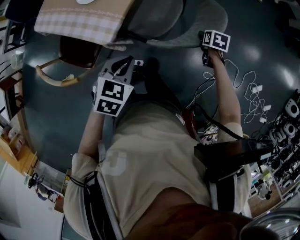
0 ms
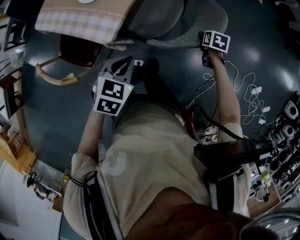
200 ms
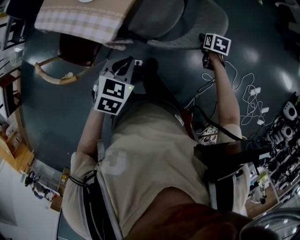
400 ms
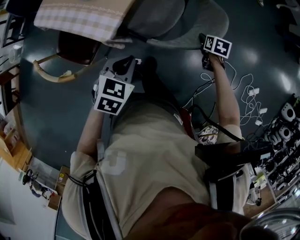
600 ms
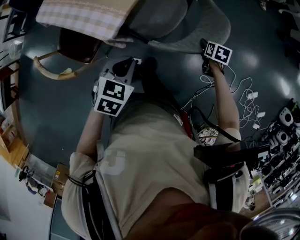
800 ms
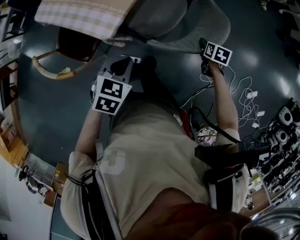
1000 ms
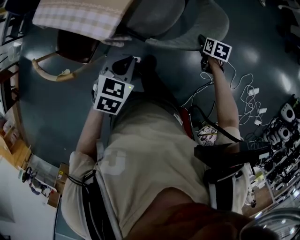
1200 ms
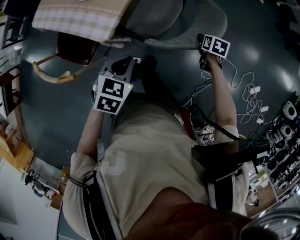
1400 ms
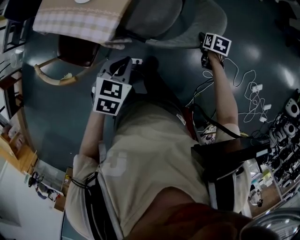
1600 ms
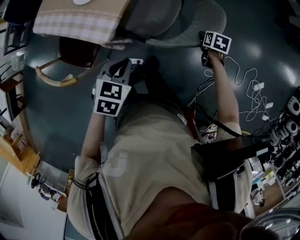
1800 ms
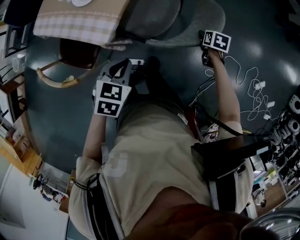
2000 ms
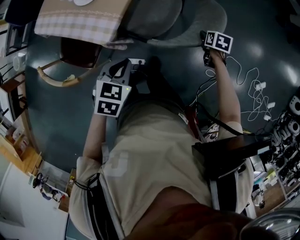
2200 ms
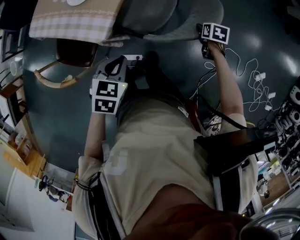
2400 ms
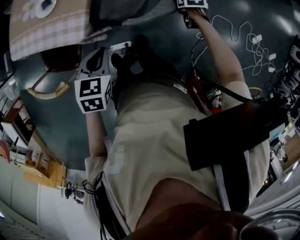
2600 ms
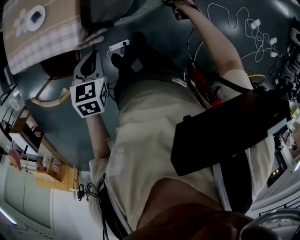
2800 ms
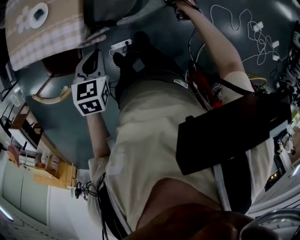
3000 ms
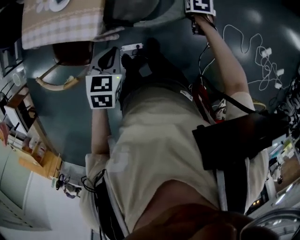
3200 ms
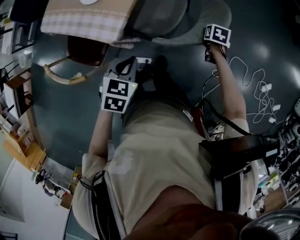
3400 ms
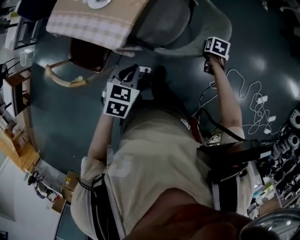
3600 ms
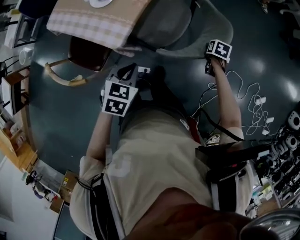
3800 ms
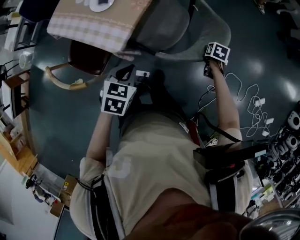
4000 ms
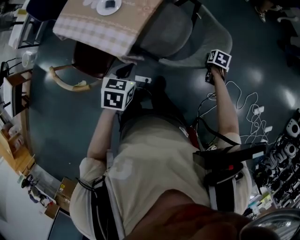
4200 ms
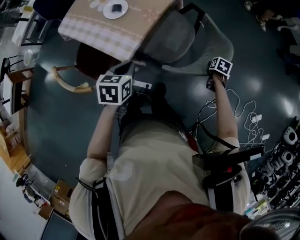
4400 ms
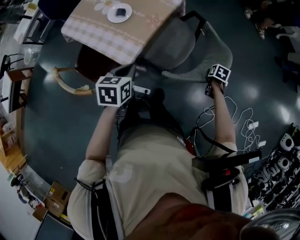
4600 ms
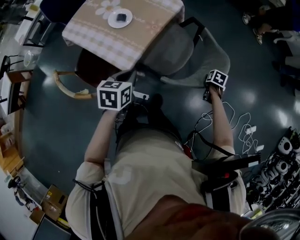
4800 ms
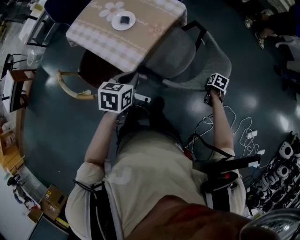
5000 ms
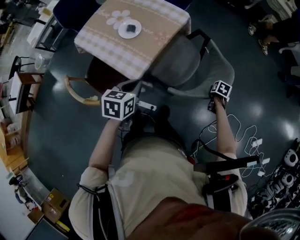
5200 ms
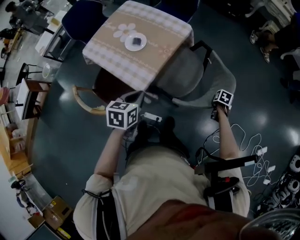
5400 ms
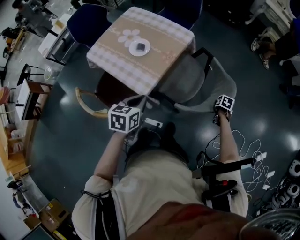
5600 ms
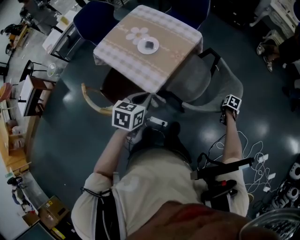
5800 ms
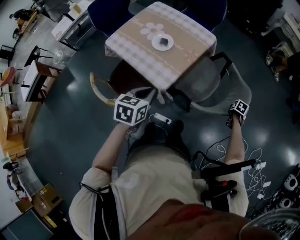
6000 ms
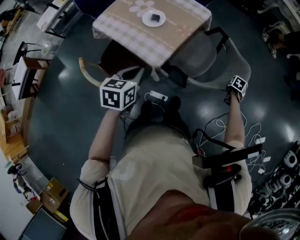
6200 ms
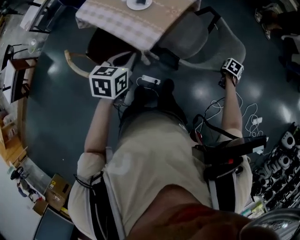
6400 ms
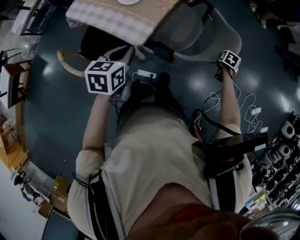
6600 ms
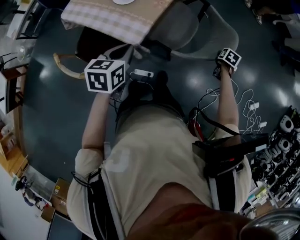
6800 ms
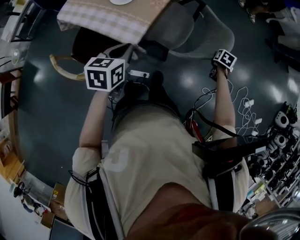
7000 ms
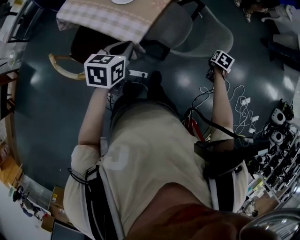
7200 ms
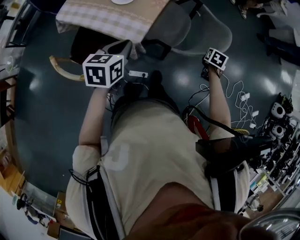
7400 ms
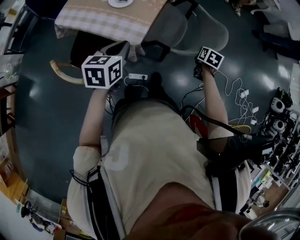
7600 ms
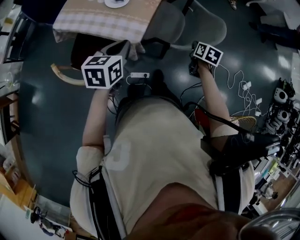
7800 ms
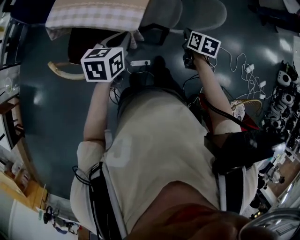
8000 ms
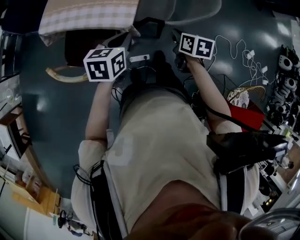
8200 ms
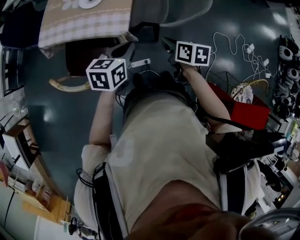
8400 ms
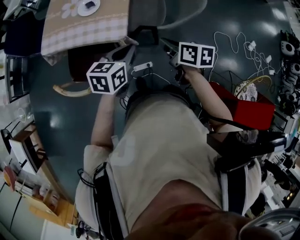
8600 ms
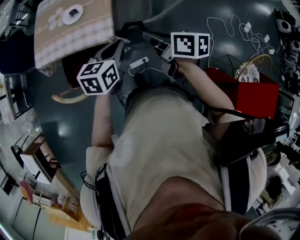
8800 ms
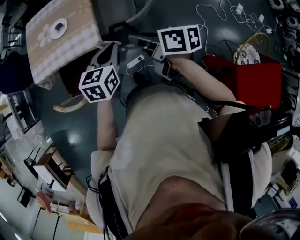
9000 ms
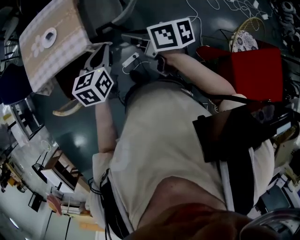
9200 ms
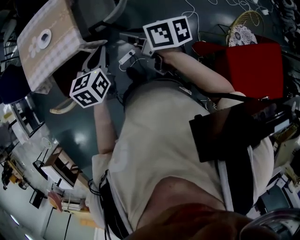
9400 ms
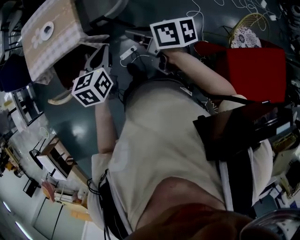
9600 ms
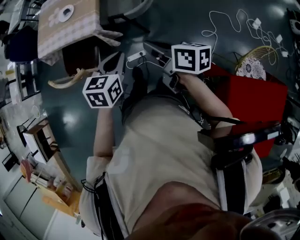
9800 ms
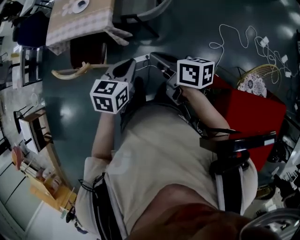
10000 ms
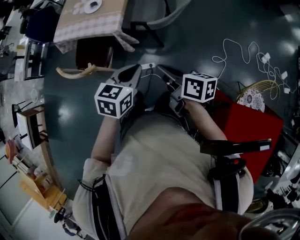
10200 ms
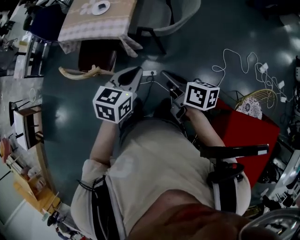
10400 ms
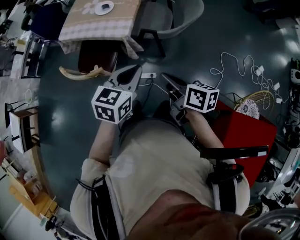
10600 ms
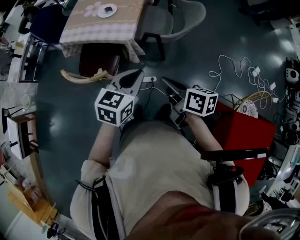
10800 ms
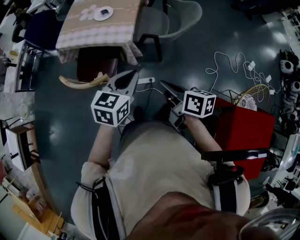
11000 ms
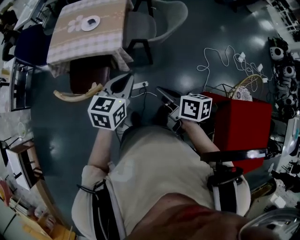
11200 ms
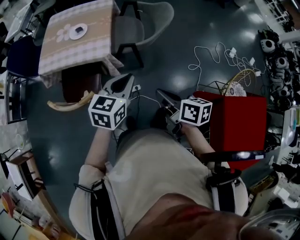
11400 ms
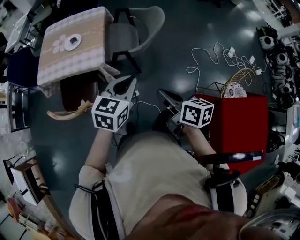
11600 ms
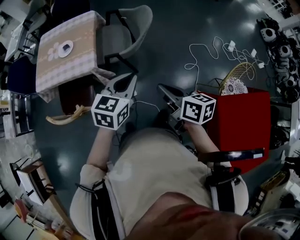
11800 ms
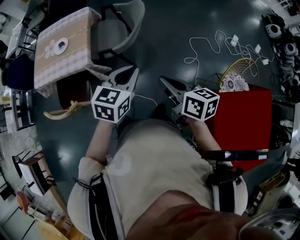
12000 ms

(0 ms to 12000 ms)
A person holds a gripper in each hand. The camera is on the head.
3000 ms - 4400 ms: The left gripper changes place by about 5 cm, and rotates some 30 degrees.
4400 ms - 6000 ms: The left gripper moves about 10 cm.
7600 ms - 9000 ms: The left gripper ends up about 15 cm from where it was, and turns by approximately 30 degrees.
9000 ms - 10400 ms: The left gripper shifts by roughly 15 cm.
10400 ms - 12000 ms: The left gripper ends up about 15 cm from where it was, and rotates approximately 20 degrees.

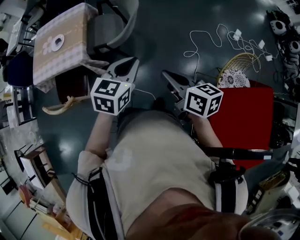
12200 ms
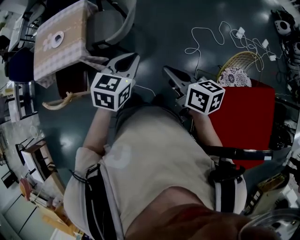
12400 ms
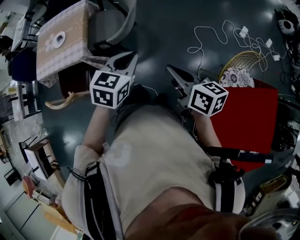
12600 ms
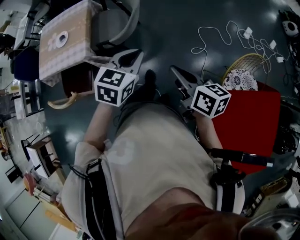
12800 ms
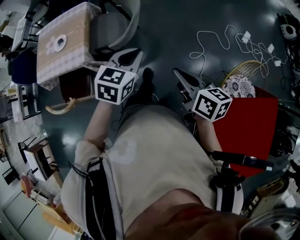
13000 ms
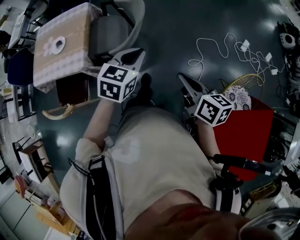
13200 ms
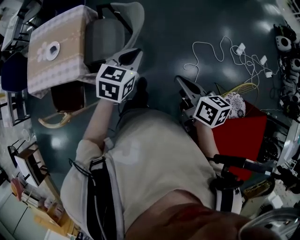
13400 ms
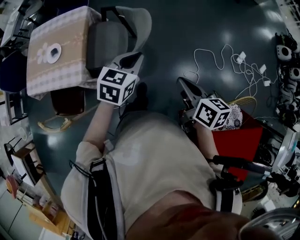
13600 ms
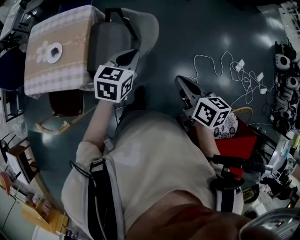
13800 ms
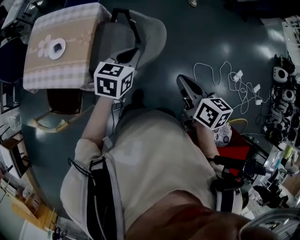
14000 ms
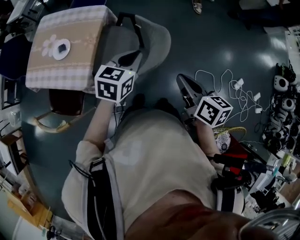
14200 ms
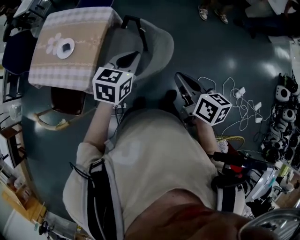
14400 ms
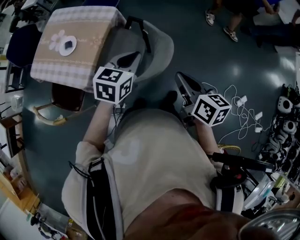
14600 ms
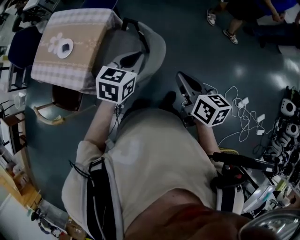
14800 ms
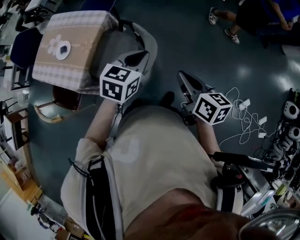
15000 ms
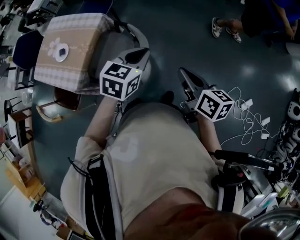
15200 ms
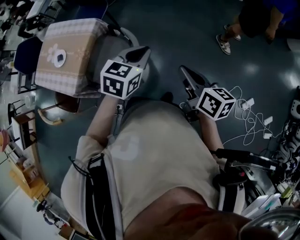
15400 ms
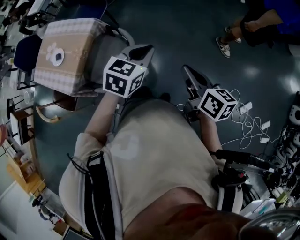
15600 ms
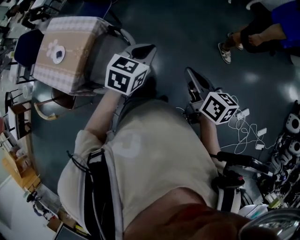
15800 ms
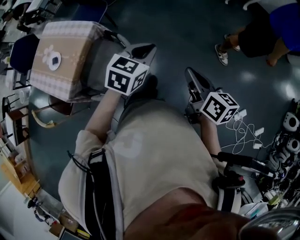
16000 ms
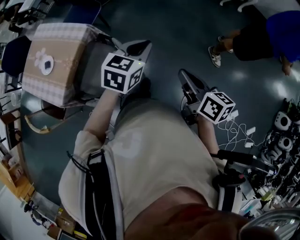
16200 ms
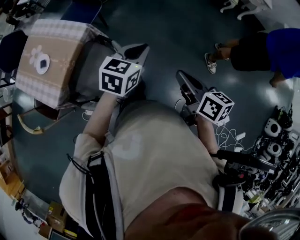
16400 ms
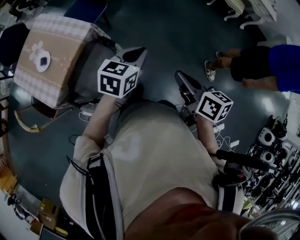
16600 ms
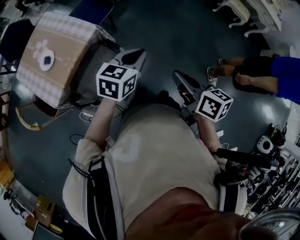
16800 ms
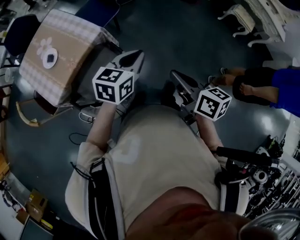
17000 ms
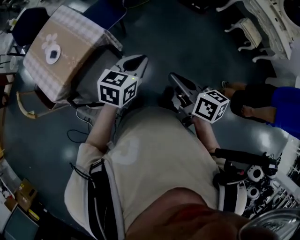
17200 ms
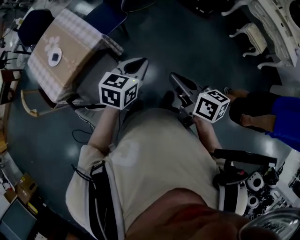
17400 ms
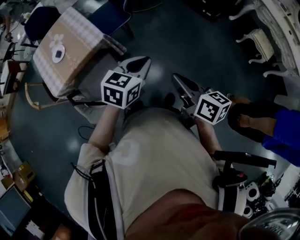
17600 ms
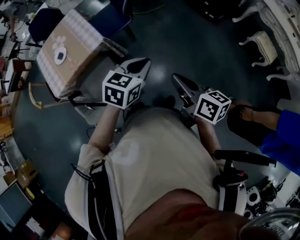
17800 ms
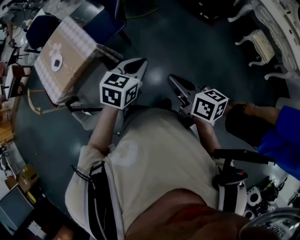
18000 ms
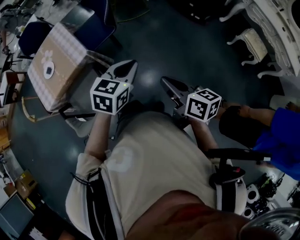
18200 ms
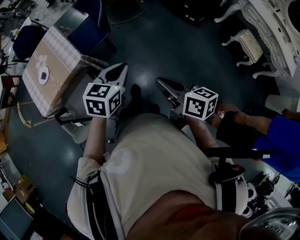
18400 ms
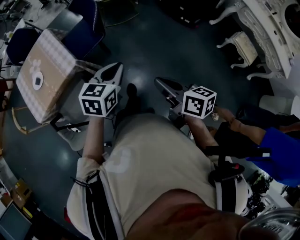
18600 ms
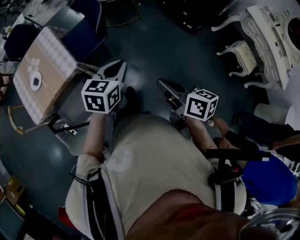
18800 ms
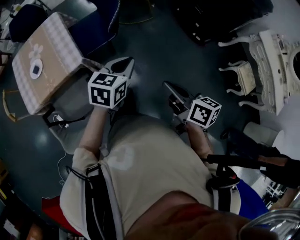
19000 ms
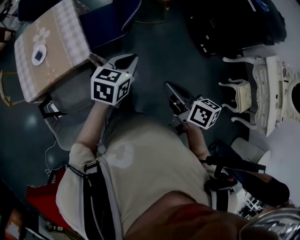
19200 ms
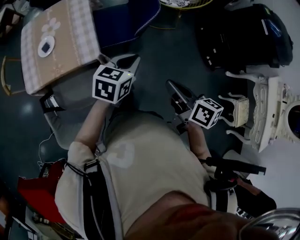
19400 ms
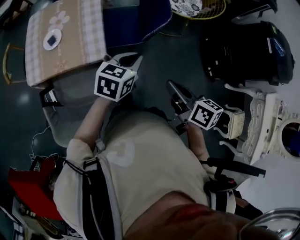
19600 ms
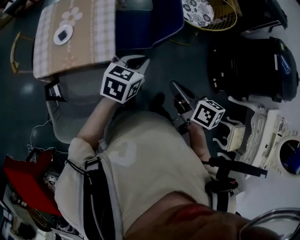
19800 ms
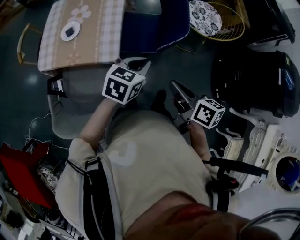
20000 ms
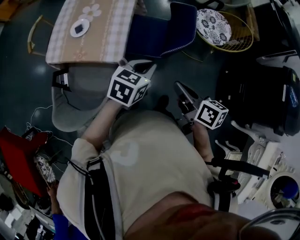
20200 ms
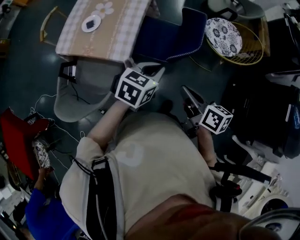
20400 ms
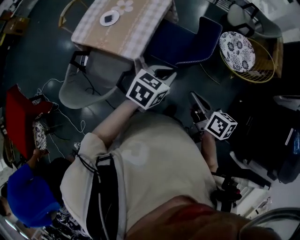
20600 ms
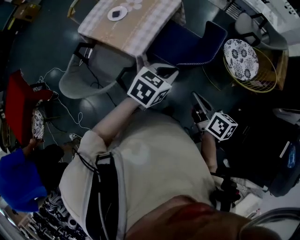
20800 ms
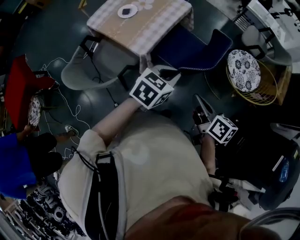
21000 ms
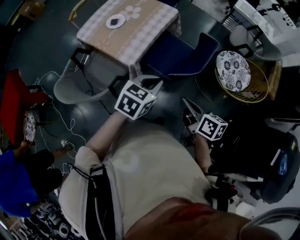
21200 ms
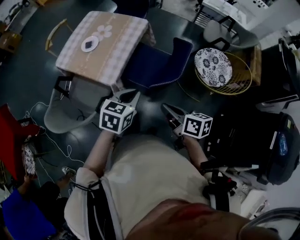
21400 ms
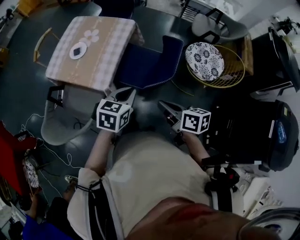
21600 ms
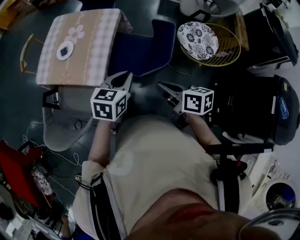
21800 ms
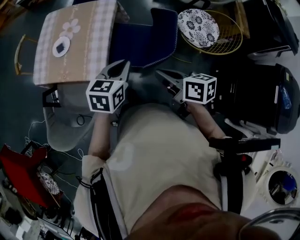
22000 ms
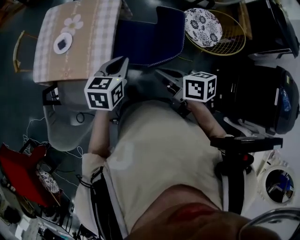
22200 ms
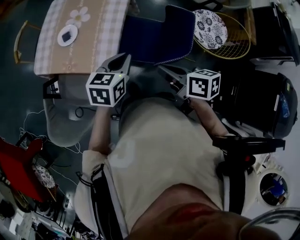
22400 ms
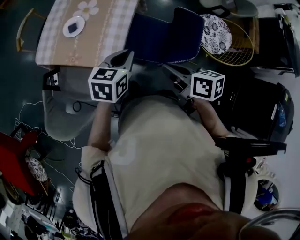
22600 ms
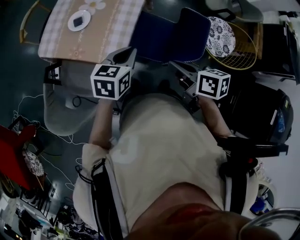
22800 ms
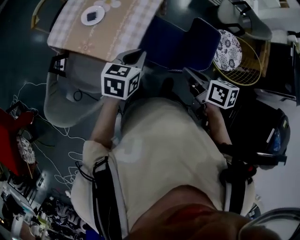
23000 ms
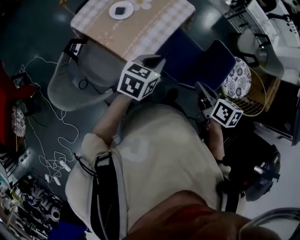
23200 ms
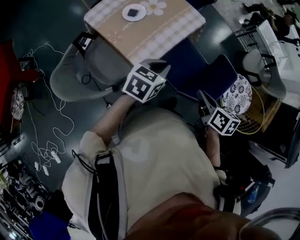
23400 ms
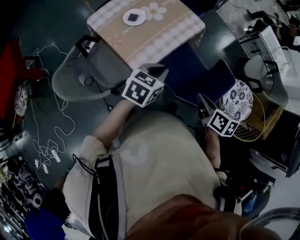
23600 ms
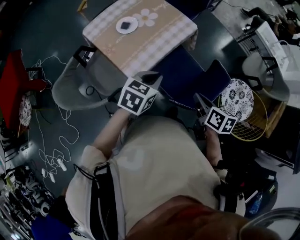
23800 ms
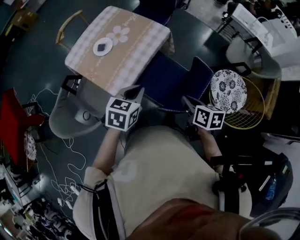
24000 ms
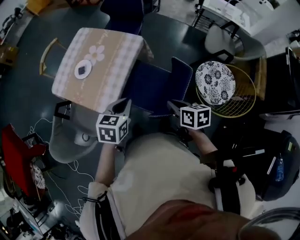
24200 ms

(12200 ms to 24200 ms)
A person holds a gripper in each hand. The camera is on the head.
12200 ms - 13800 ms: The left gripper moves about 35 cm.
13800 ms - 15200 ms: The left gripper ends up about 20 cm from where it was.
15200 ms - 16600 ms: The left gripper moves roughly 25 cm.
16600 ms - 18200 ms: The left gripper shifts by roughly 25 cm, and rotates some 20 degrees.
18200 ms - 19800 ms: The left gripper moves about 35 cm, and turns by some 30 degrees.
19800 ms - 21200 ms: The left gripper changes place by roughly 10 cm, and swivels about 30 degrees.
21200 ms - 22600 ms: The left gripper changes place by approximately 20 cm.
22600 ms - 24200 ms: The left gripper shifts by roughly 10 cm.
